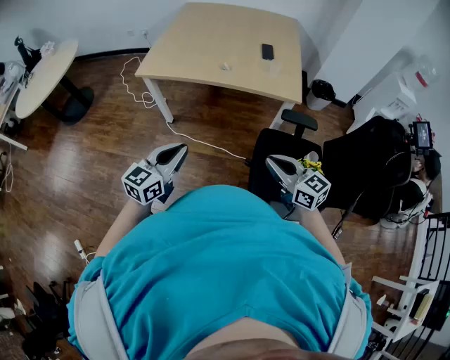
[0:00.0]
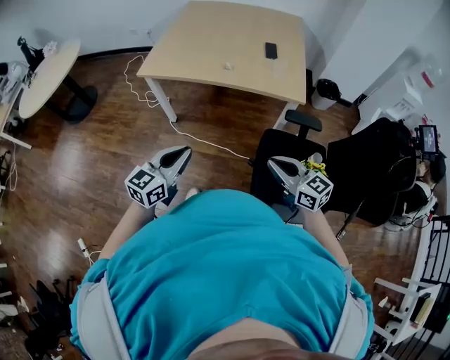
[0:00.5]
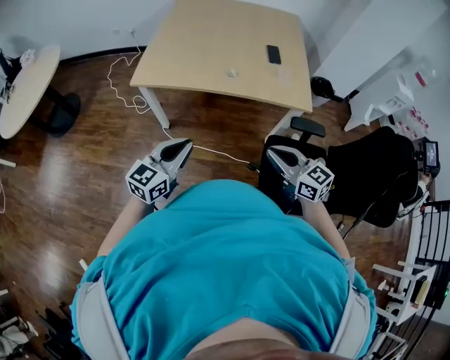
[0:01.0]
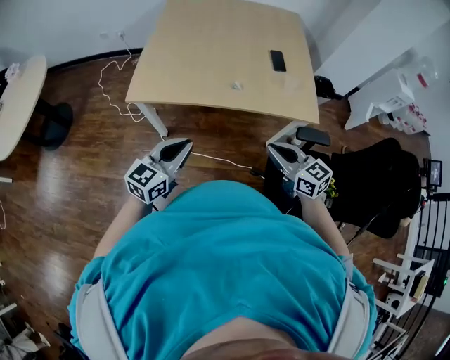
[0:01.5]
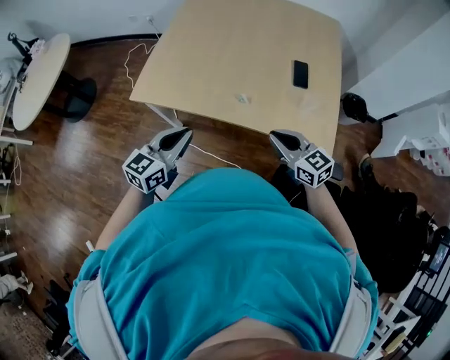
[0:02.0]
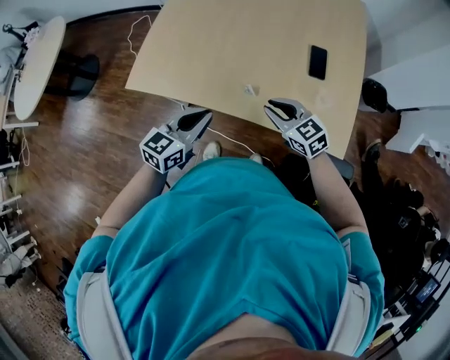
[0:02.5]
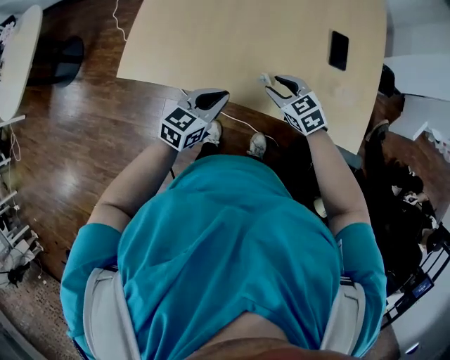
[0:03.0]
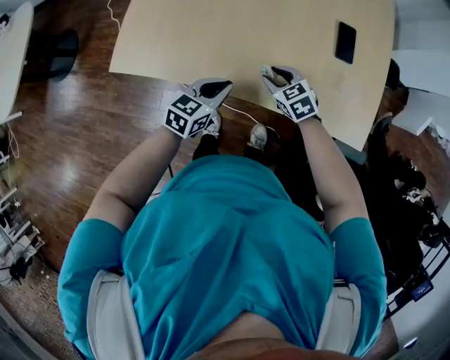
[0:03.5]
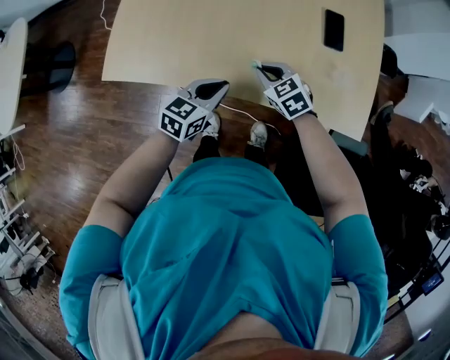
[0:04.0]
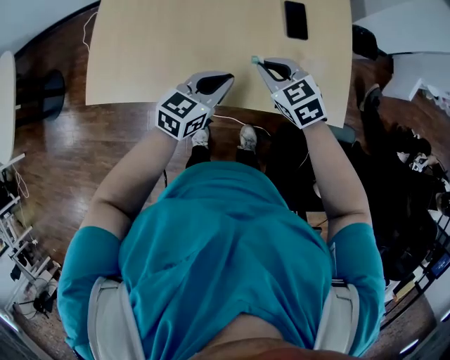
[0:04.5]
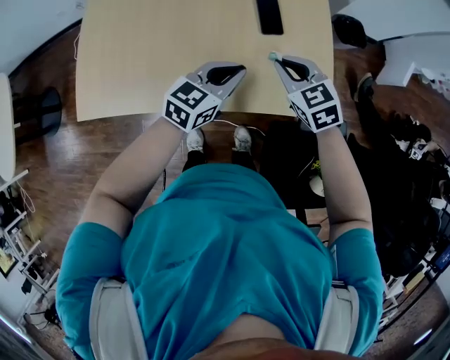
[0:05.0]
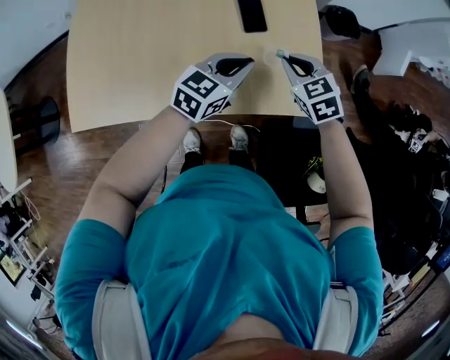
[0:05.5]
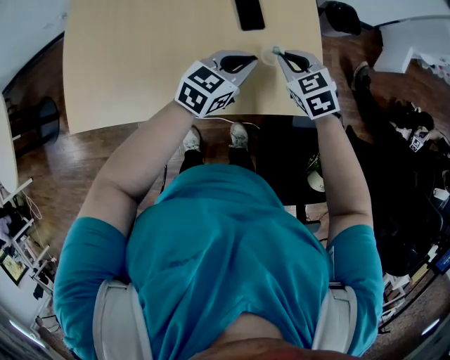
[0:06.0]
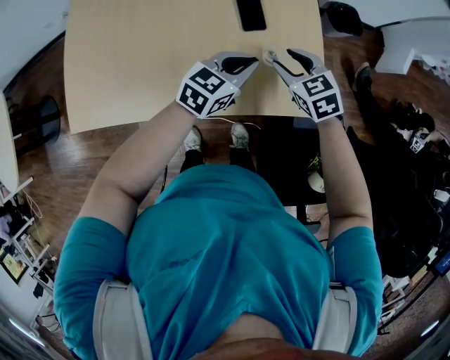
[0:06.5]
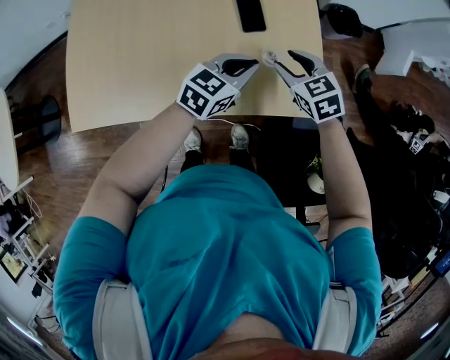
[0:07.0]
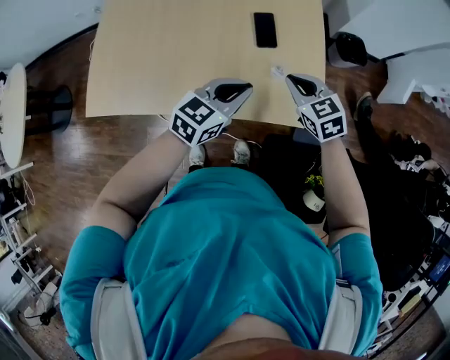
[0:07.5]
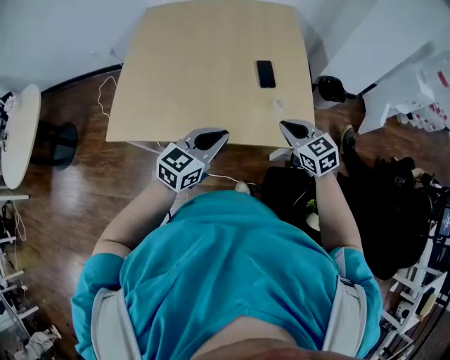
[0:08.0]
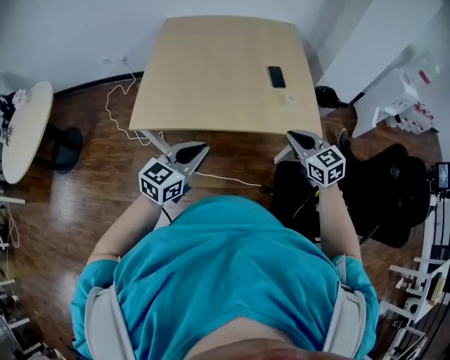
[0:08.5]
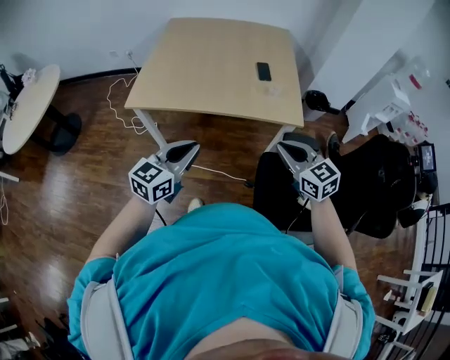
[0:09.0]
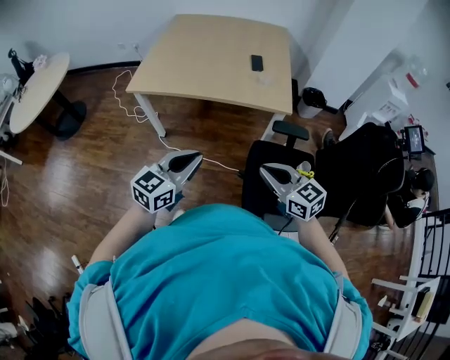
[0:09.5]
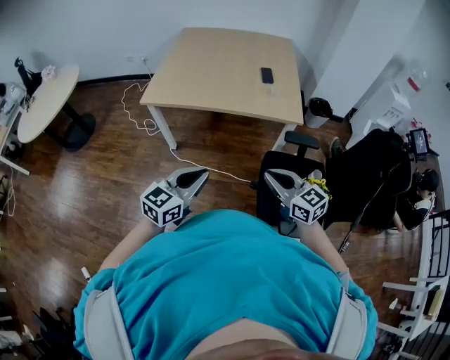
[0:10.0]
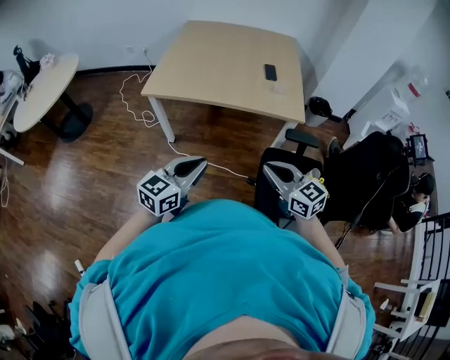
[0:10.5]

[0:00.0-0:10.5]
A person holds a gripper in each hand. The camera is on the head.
0:00.0 to 0:02.0: Both grippers move forward, approximately 40 cm.
0:02.0 to 0:04.0: The right gripper moves downward, forward and to the left, about 30 cm, turns by about 30 degrees, and opens, then closes once more, while the left gripper travels downward and forward by approximately 25 cm, and changes its angle by about 20 degrees.
0:04.0 to 0:06.5: The right gripper travels to the right by about 25 cm, changes its angle by approximately 20 degrees, and opens up. The left gripper heads to the right and forward, covering about 30 cm, and turns by approximately 20 degrees.
0:06.5 to 0:08.5: The left gripper shifts about 50 cm backward, to the left and upward, while the right gripper is displaced backward and upward by some 35 cm, and closes.
0:08.5 to 0:10.5: Both grippers move backward, roughly 30 cm.

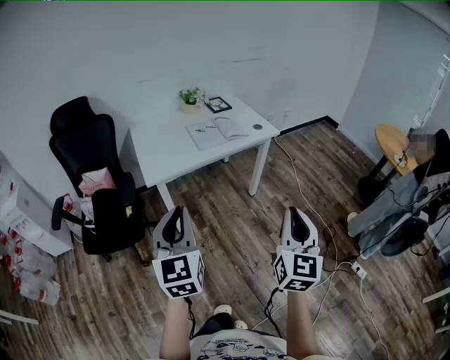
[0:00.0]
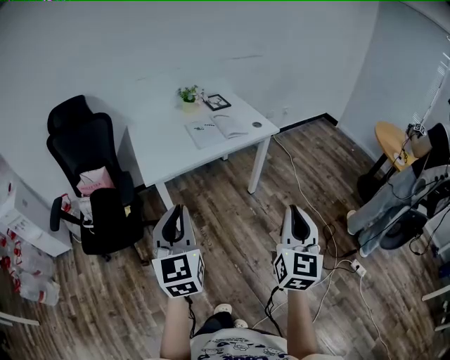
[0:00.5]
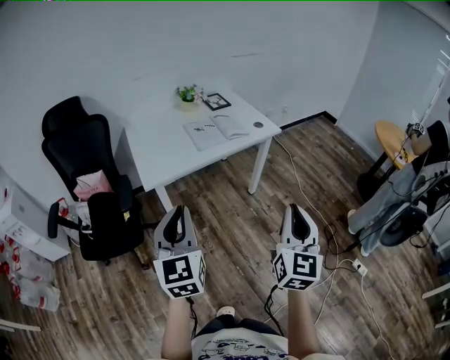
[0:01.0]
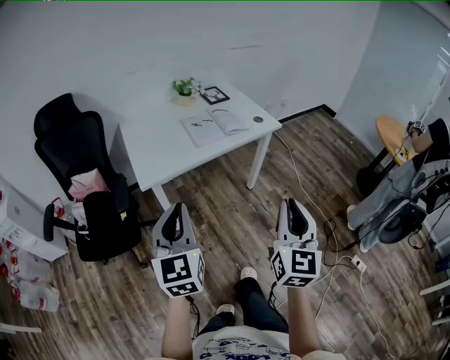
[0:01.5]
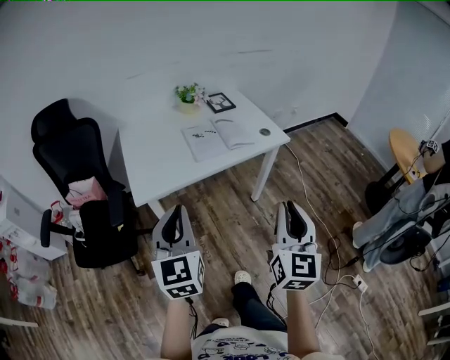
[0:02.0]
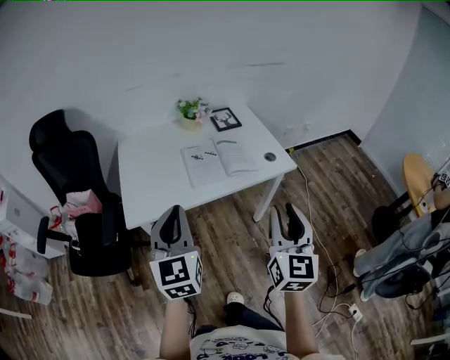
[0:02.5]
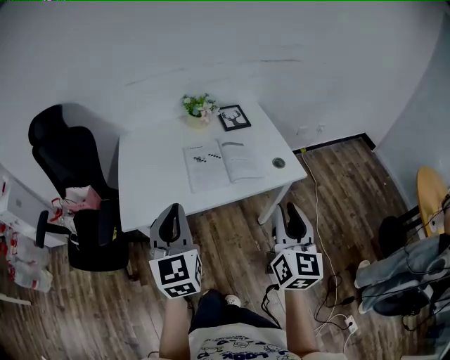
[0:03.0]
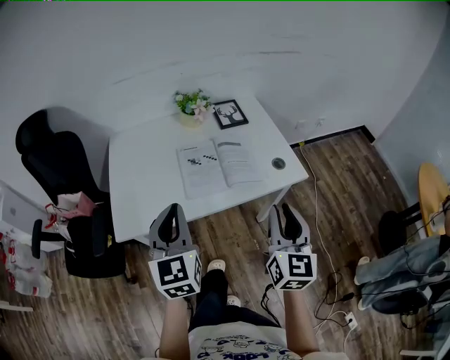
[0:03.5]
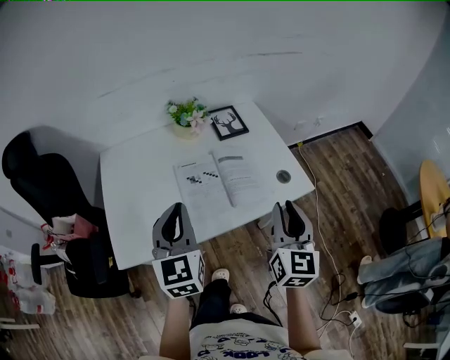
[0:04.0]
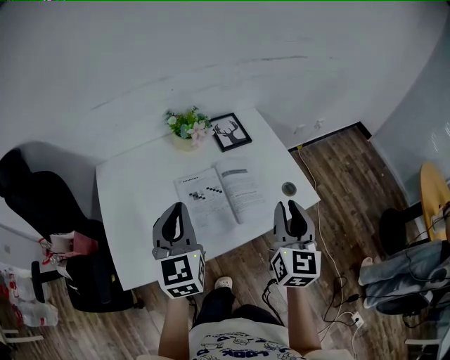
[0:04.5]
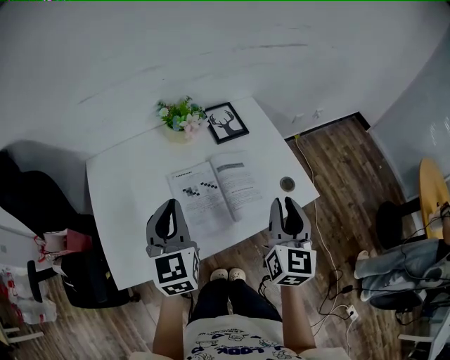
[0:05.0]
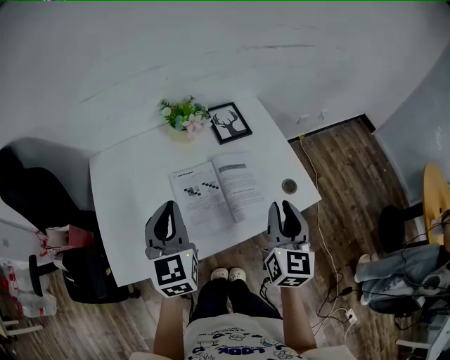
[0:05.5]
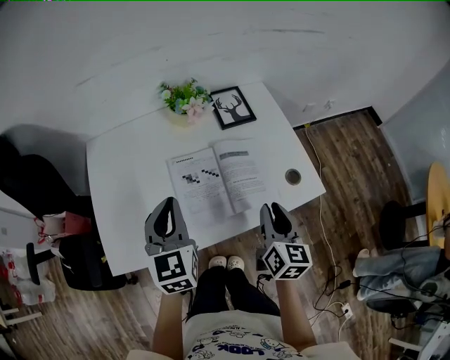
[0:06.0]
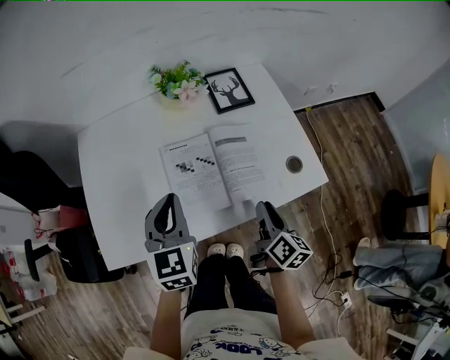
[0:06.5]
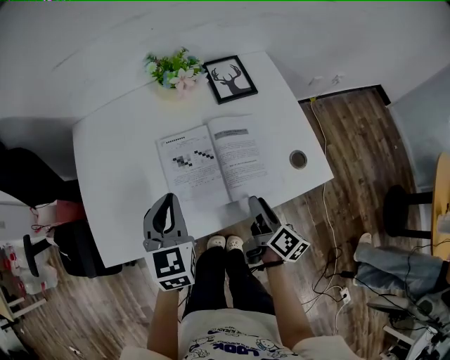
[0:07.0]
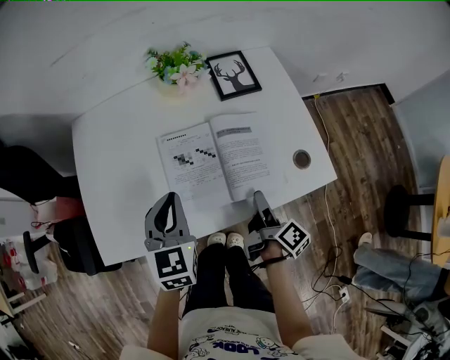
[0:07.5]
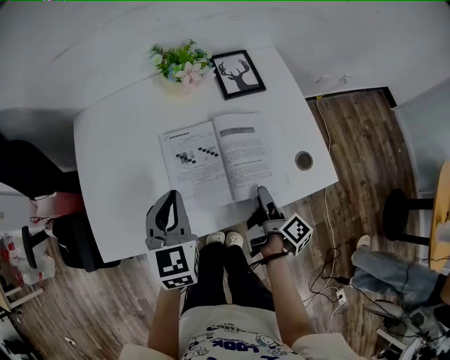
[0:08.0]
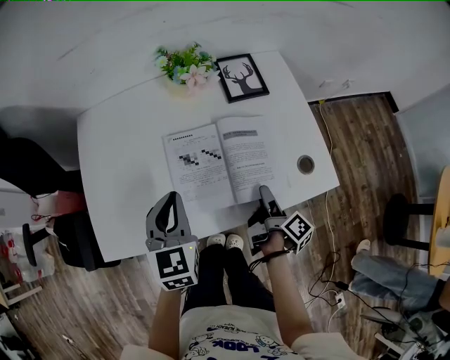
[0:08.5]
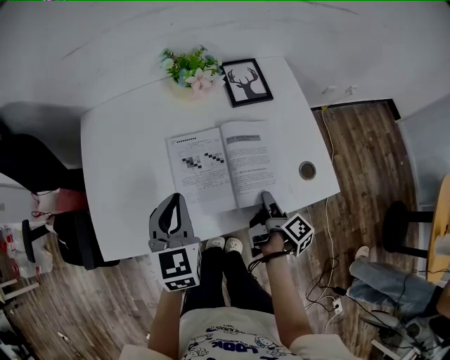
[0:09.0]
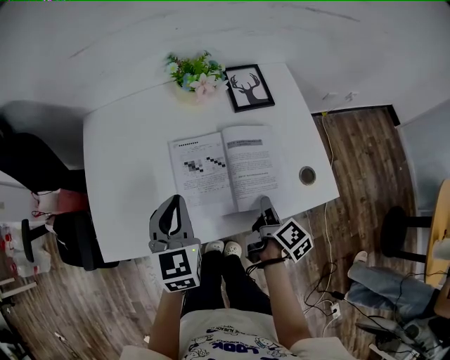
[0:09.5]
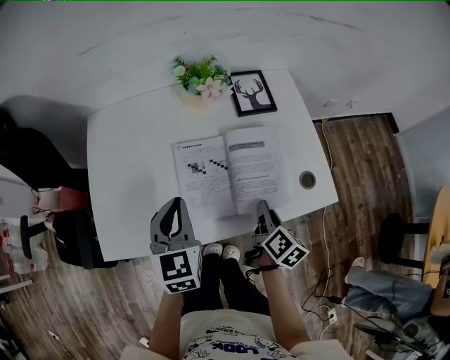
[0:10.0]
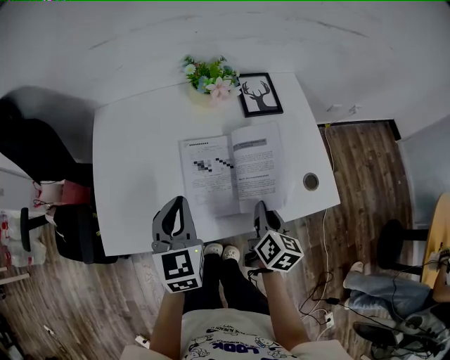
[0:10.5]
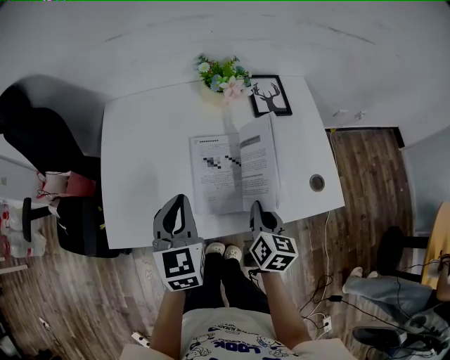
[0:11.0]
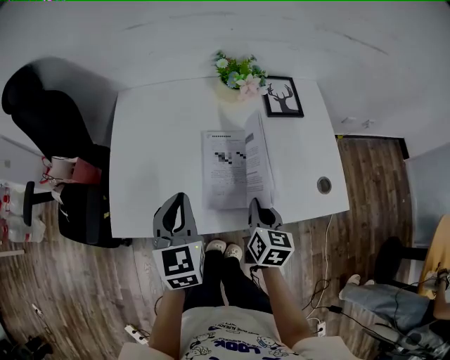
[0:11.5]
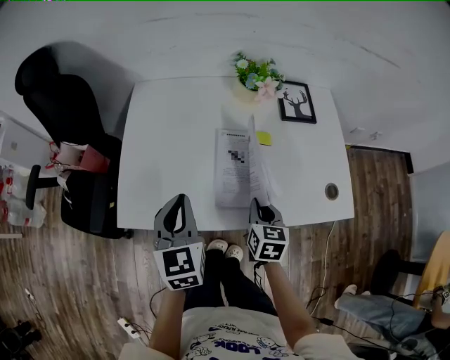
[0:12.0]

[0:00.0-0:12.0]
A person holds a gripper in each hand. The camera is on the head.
0:00.0 to 0:02.0: The two grippers go some 20 cm forward.
0:02.0 to 0:04.0: The grippers both shift forward by roughly 40 cm.
0:04.0 to 0:06.0: The right gripper travels downward and forward by about 15 cm, and rotates some 20 degrees. The left gripper goes approximately 10 cm forward and downward.
0:06.0 to 0:08.0: The right gripper goes approximately 15 cm downward, twists about 70 degrees clockwise, seen from behind, and opens; the left gripper moves downward, approximately 10 cm.
0:08.0 to 0:10.0: The right gripper changes its angle by roughly 40 degrees, and closes up.
0:10.0 to 0:12.0: The right gripper shifts some 15 cm to the left, and rotates around the line of its fingers by about 40 degrees, counterclockwise from behind. Meanwhile the left gripper is displaced to the left and backward by approximately 10 cm.

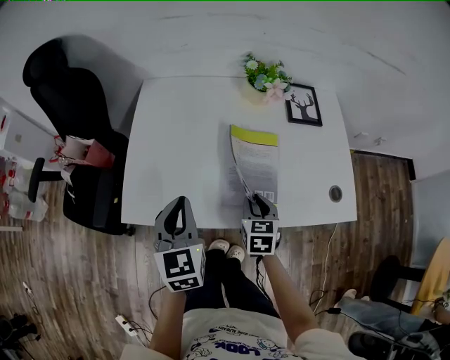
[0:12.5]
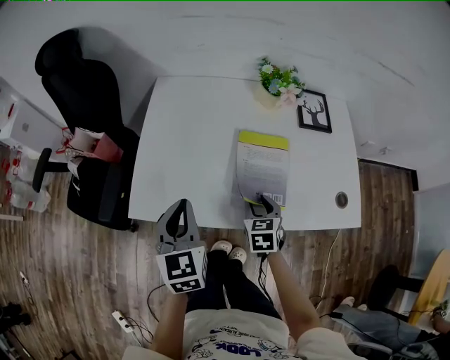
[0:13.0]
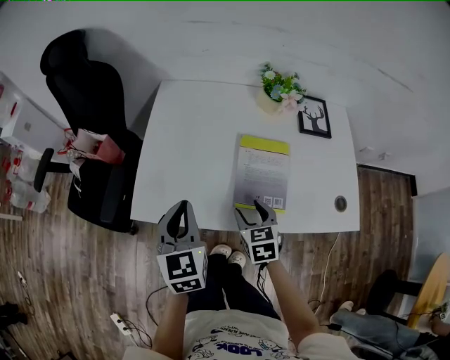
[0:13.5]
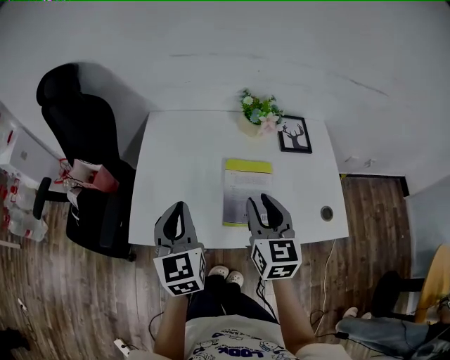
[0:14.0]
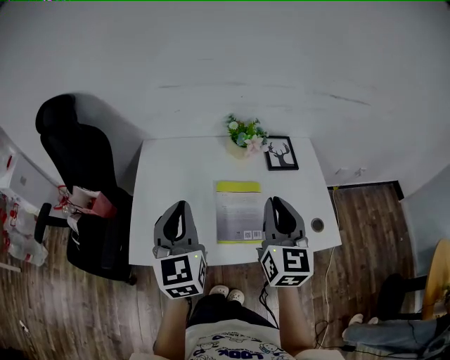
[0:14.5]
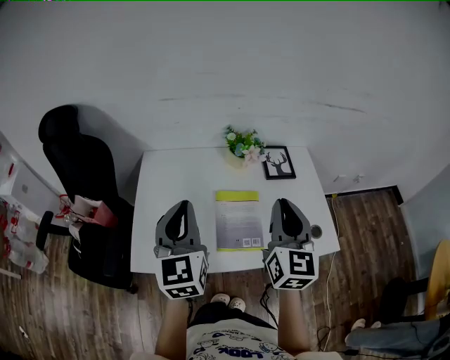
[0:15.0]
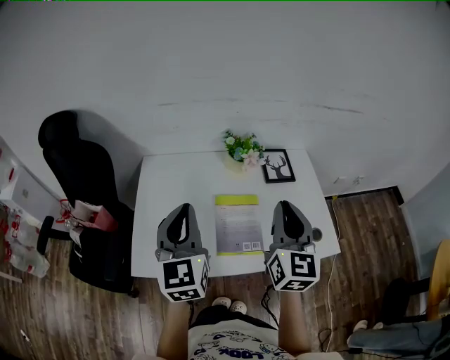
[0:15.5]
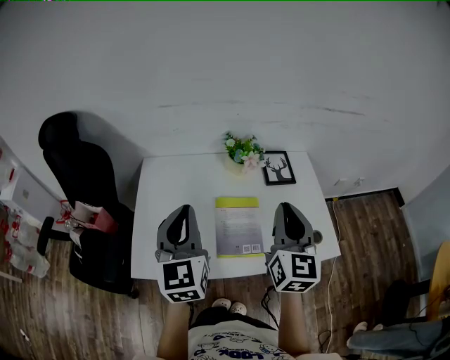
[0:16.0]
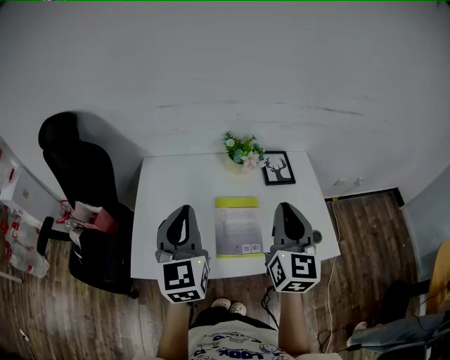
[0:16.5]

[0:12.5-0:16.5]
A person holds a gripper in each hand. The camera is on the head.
0:12.5 to 0:14.5: The left gripper is displaced upward by approximately 15 cm; the right gripper heads upward, covering some 30 cm, tilts its fingers some 40 degrees upward, and opens, then closes again.
0:14.5 to 0:16.5: The grippers make only small movements.
